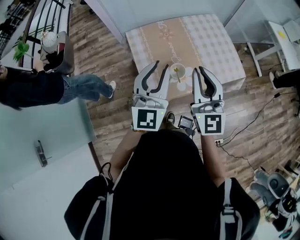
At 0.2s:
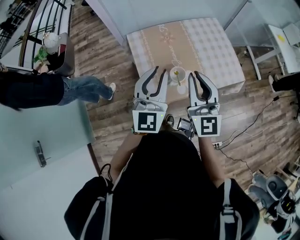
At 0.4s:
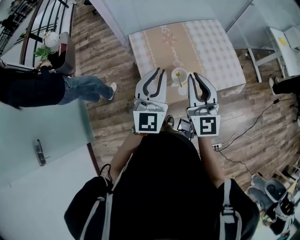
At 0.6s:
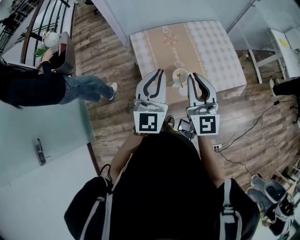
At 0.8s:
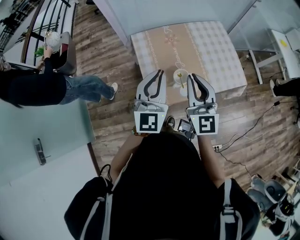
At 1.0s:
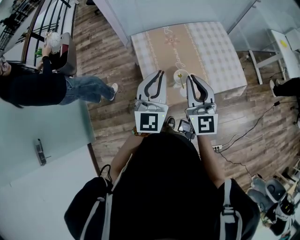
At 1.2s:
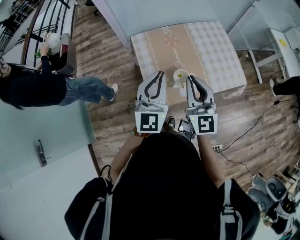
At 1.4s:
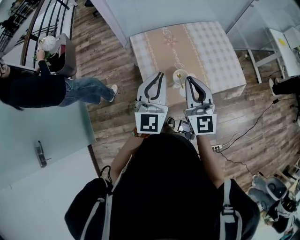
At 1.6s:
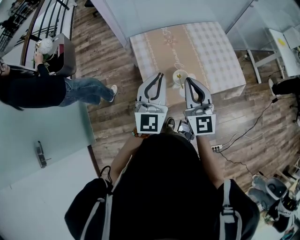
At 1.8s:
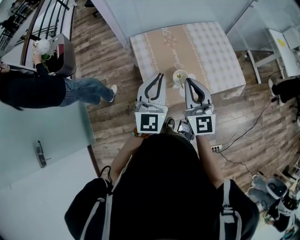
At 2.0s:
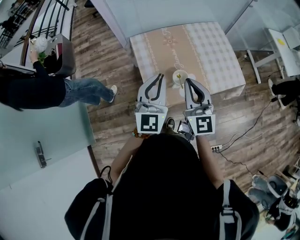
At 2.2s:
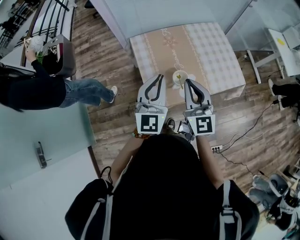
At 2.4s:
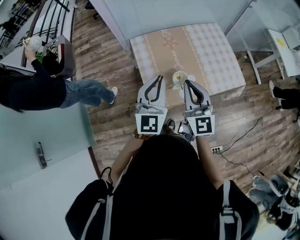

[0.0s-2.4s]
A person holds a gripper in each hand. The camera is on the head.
0.0s to 1.2s: The right gripper moves roughly 5 cm.
1.2s to 2.4s: The grippers make only small movements.

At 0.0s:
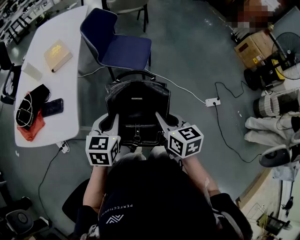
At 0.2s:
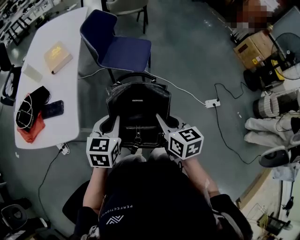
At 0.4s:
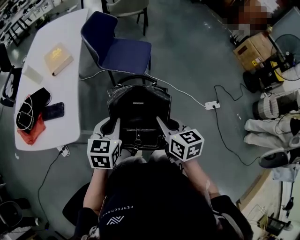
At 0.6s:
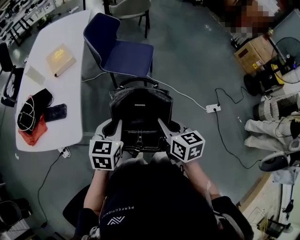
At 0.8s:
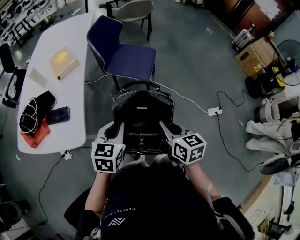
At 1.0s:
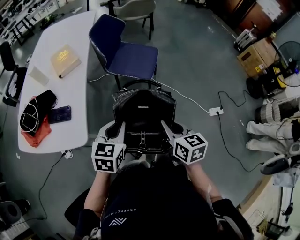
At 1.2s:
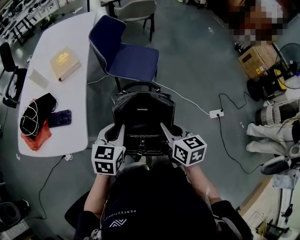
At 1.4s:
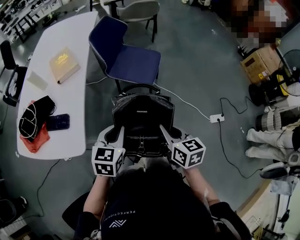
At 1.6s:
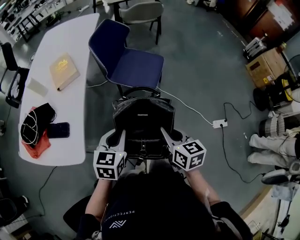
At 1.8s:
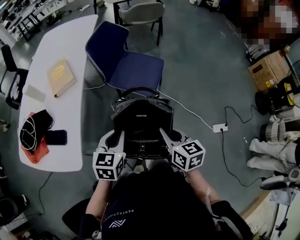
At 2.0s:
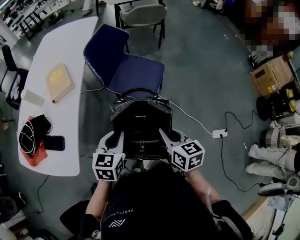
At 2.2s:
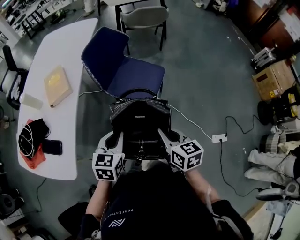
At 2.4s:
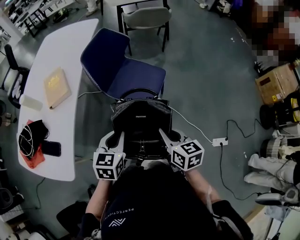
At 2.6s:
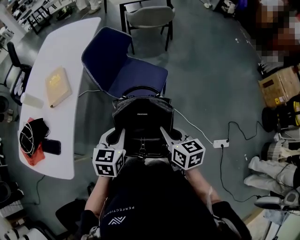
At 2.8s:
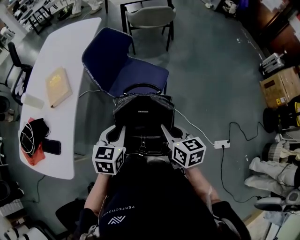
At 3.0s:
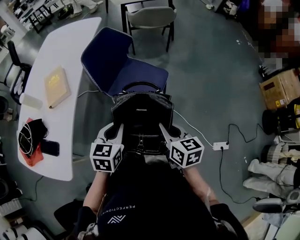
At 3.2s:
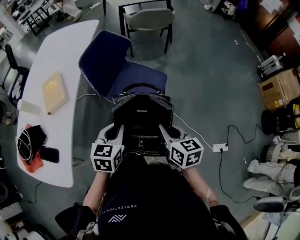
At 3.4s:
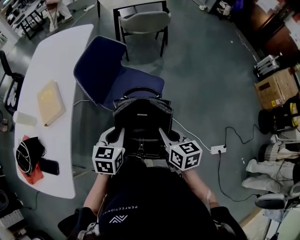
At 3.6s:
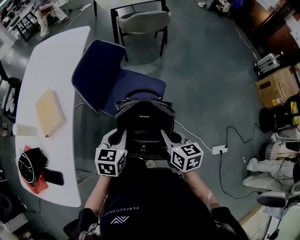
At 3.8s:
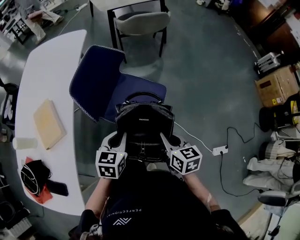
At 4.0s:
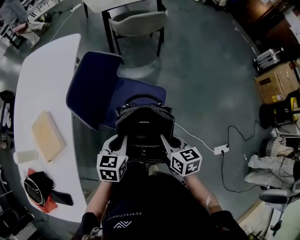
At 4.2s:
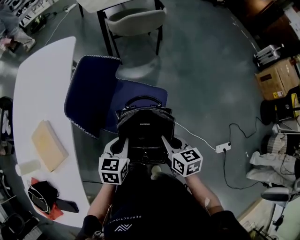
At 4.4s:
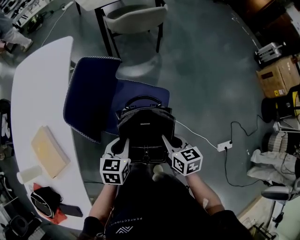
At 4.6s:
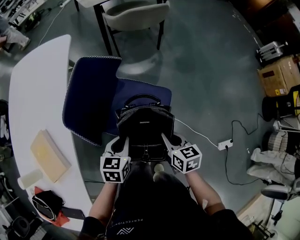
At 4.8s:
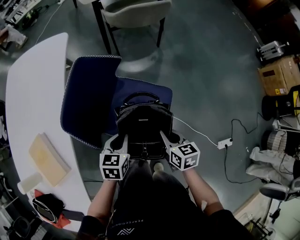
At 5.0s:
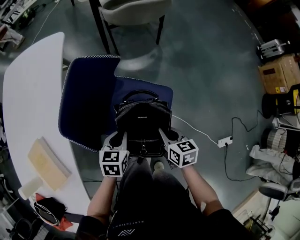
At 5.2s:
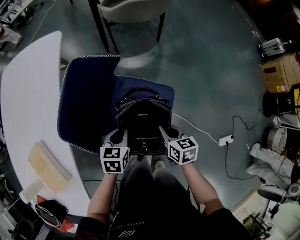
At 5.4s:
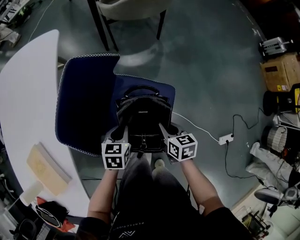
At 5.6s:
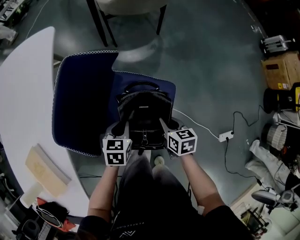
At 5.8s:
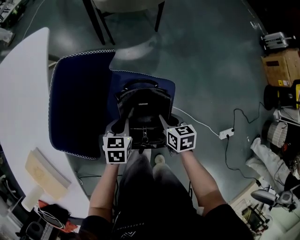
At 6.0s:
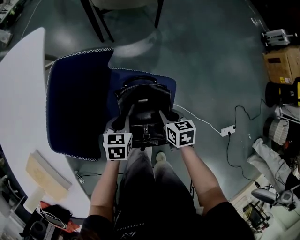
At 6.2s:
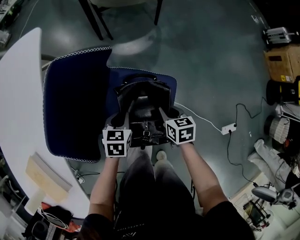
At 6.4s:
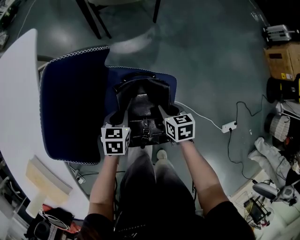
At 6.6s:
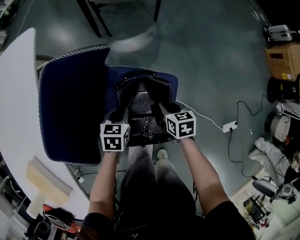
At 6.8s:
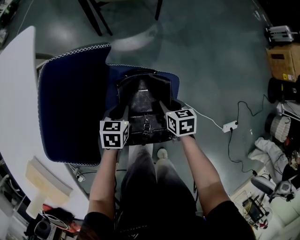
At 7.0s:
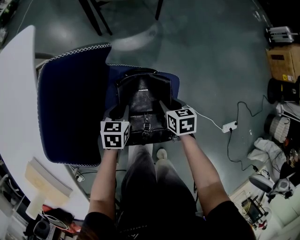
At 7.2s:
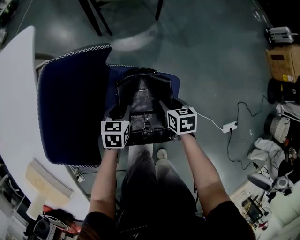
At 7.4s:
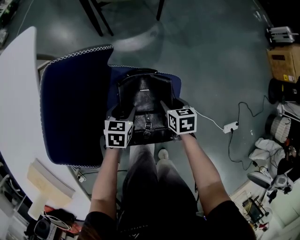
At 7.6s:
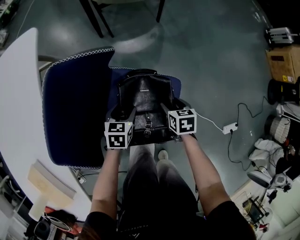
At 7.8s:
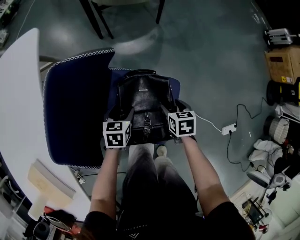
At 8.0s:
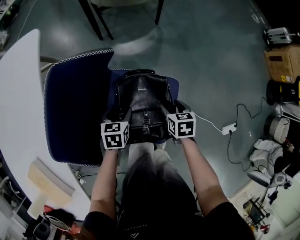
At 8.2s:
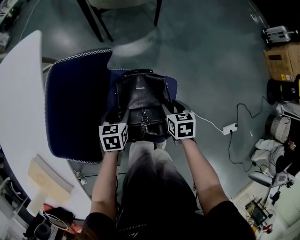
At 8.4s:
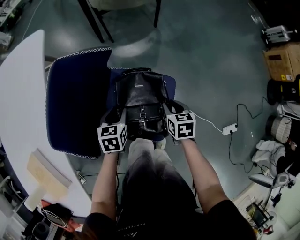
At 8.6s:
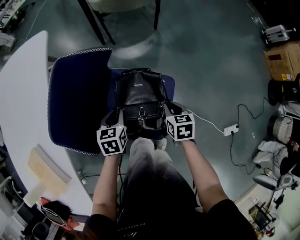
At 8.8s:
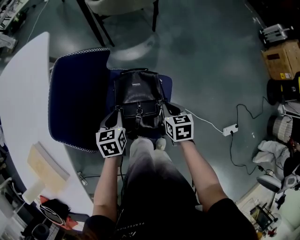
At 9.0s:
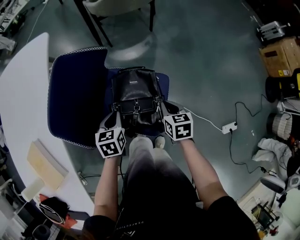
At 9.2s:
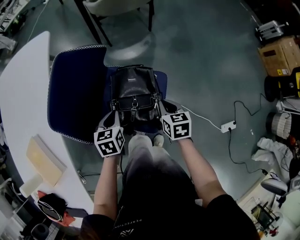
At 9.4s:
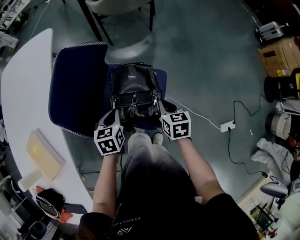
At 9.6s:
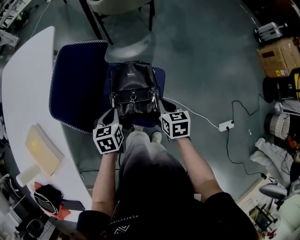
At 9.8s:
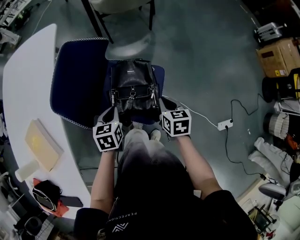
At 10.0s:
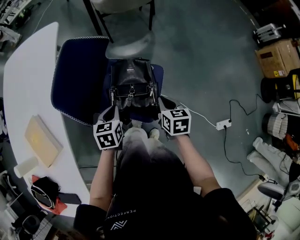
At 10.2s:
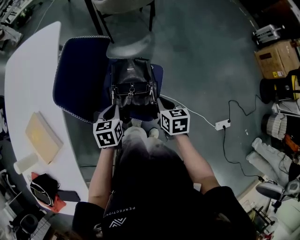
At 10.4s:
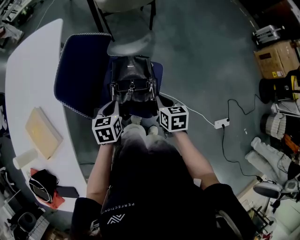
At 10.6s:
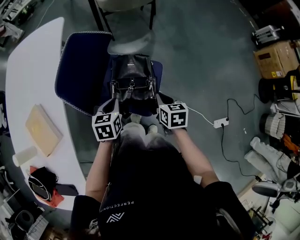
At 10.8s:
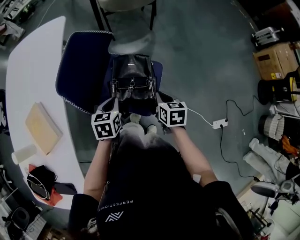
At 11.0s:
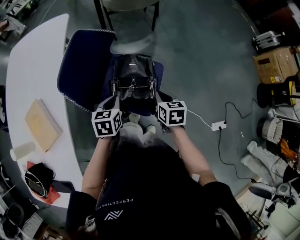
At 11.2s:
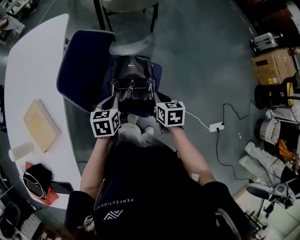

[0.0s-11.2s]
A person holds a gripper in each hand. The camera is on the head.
0.0s to 1.6s: The grippers both shift forward by approximately 10 cm.
1.6s to 3.2s: The two grippers go about 20 cm forward and to the right.
3.2s to 4.8s: The grippers both shift forward and downward by approximately 30 cm.
4.8s to 6.4s: Both grippers travel together downward and forward, about 15 cm.
6.4s to 8.0s: The right gripper opens up, while the left gripper opens up.
8.0s to 9.6s: Both grippers travel together upward and backward, approximately 15 cm. The right gripper closes its fingers; the left gripper closes up.
9.6s to 11.2s: The left gripper goes about 5 cm upward, while the right gripper shifts by approximately 5 cm.

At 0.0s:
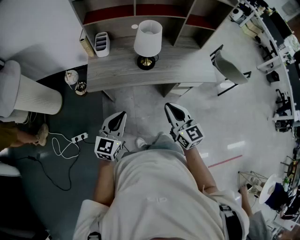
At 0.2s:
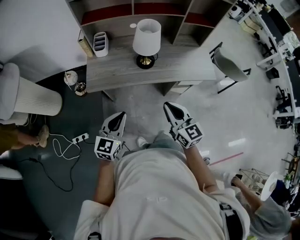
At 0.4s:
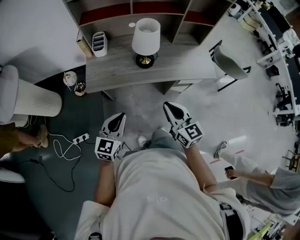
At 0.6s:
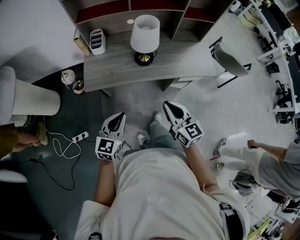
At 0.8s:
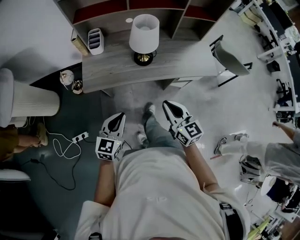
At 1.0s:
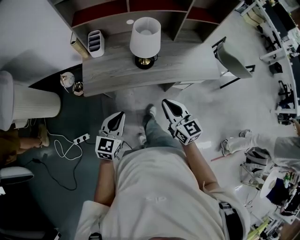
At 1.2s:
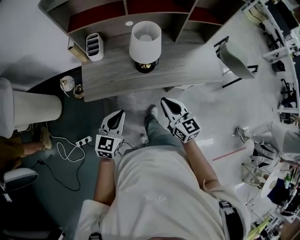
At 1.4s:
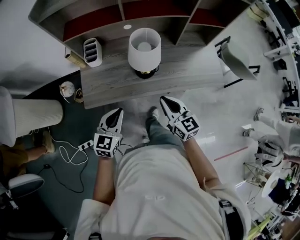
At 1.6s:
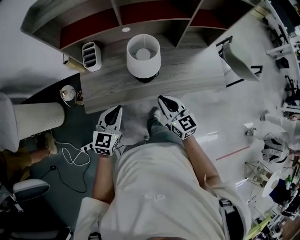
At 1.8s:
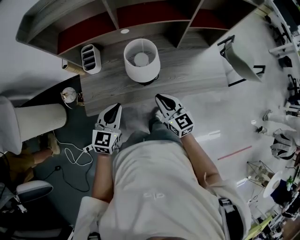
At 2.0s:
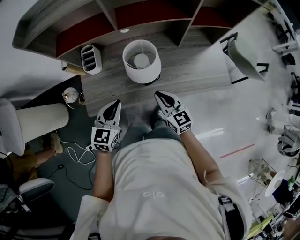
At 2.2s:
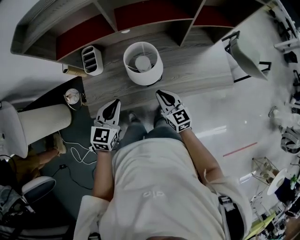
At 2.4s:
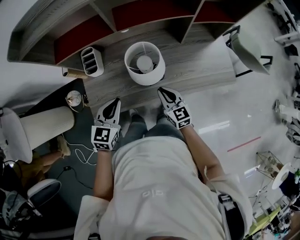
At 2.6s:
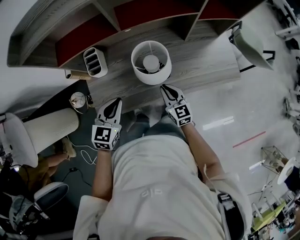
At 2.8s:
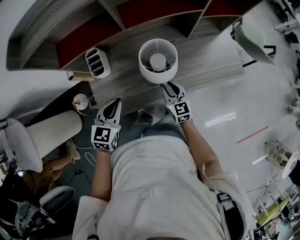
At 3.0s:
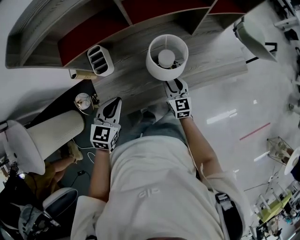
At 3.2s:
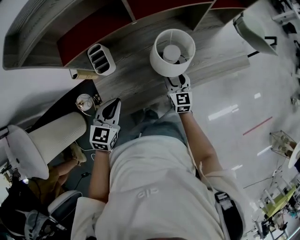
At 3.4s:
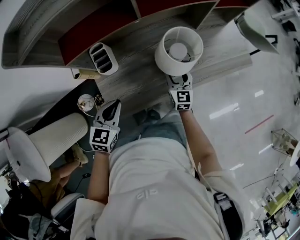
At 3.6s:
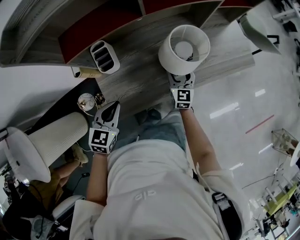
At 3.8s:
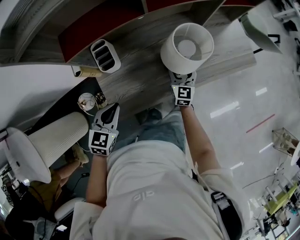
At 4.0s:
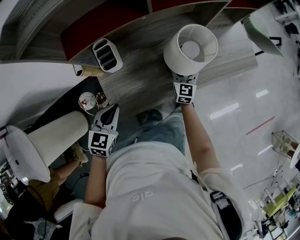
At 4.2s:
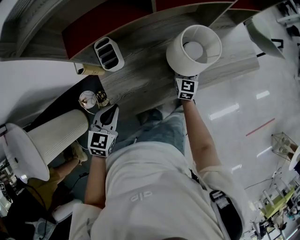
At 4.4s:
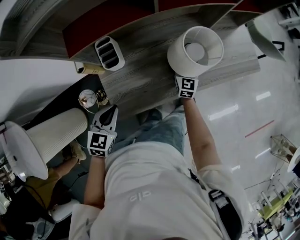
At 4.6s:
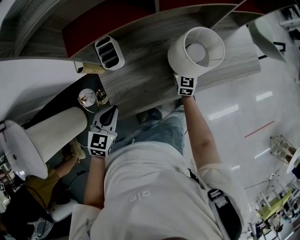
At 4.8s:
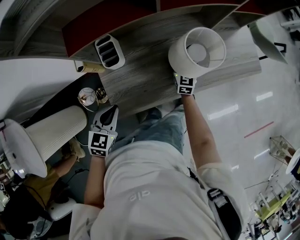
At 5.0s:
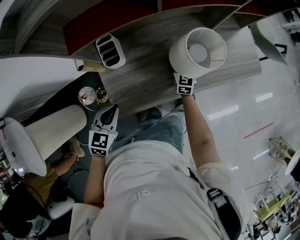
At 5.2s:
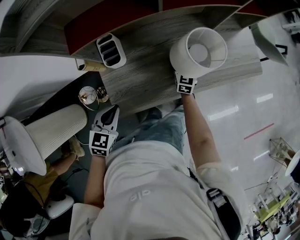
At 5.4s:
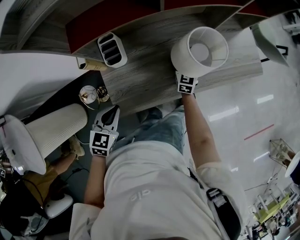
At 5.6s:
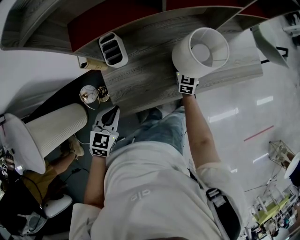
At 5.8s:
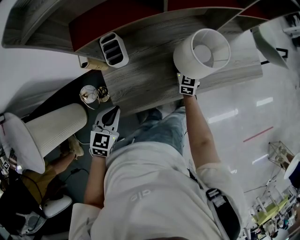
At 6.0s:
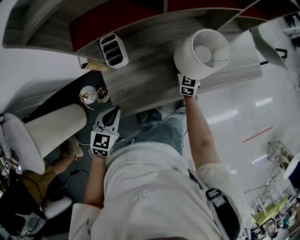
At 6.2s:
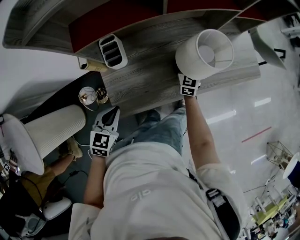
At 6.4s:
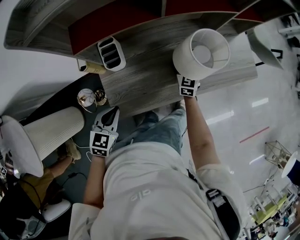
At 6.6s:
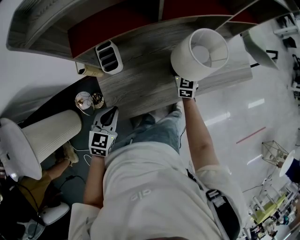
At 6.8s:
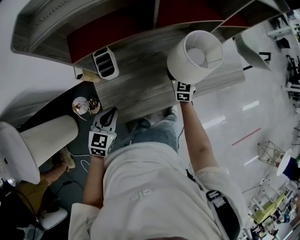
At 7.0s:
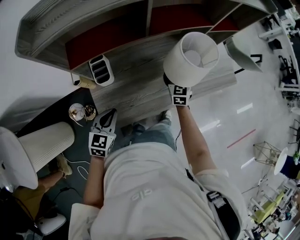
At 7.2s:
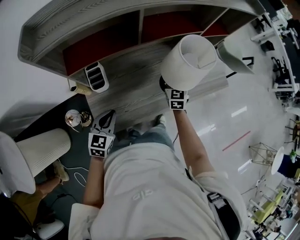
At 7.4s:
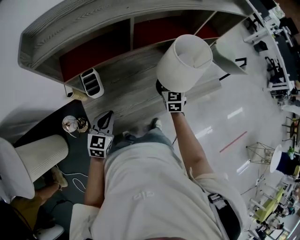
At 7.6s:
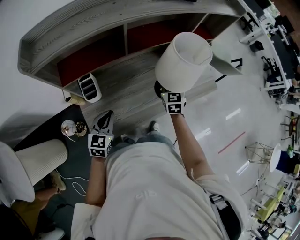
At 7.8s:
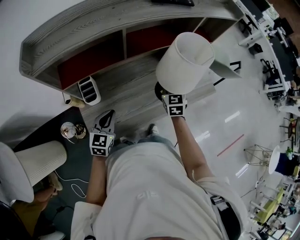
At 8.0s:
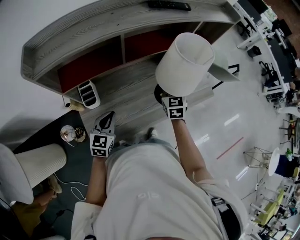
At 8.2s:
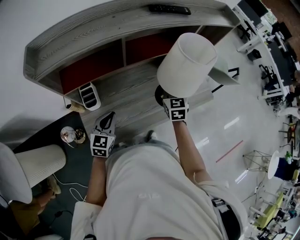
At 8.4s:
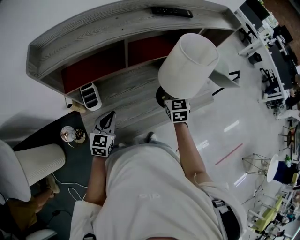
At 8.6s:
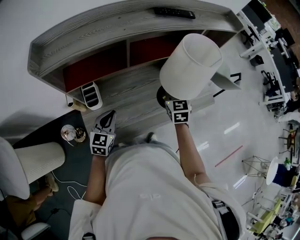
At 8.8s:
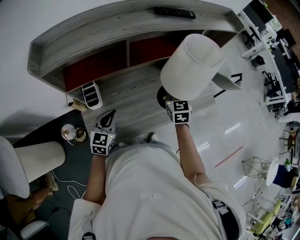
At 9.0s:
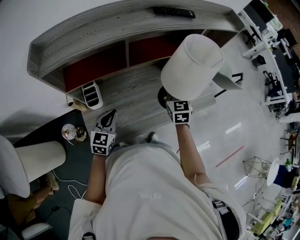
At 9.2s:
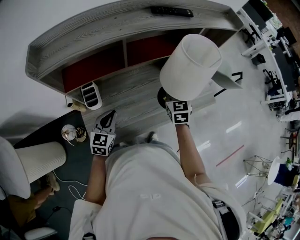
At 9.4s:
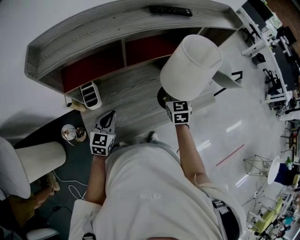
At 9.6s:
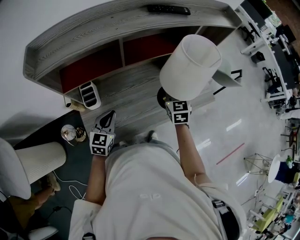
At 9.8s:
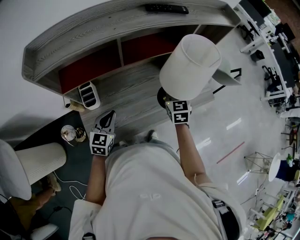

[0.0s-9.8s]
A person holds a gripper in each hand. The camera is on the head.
0.0s to 1.4s: The grippers both shift forward by some 20 cm.
1.4s to 2.8s: The left gripper shifts roughly 20 cm forward and to the left, while the right gripper travels forward and downward by roughly 20 cm.
2.8s to 4.2s: The right gripper is displaced forward and downward by about 10 cm, turns by roughly 30 degrees, and opens its fingers; the left gripper shifts about 15 cm to the left, backward and downward.
4.2s to 5.6s: The right gripper closes its fingers.
5.6s to 7.0s: The left gripper moves forward, about 5 cm; the right gripper is displaced upward by roughly 10 cm.
7.0s to 8.4s: The right gripper shifts some 15 cm upward; the left gripper travels forward, to the right and upward by approximately 15 cm.
8.4s to 9.8s: The grippers move only a little.
